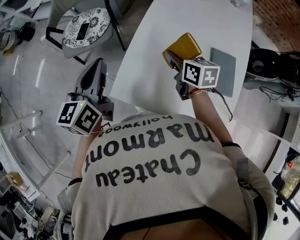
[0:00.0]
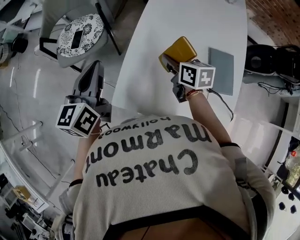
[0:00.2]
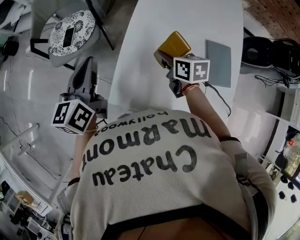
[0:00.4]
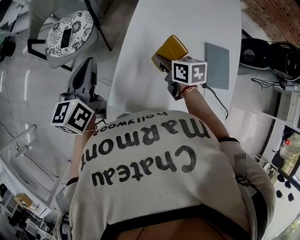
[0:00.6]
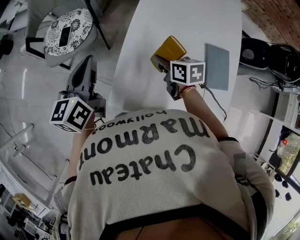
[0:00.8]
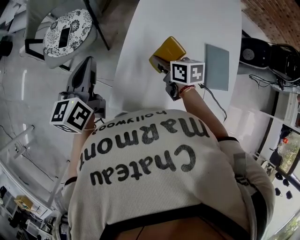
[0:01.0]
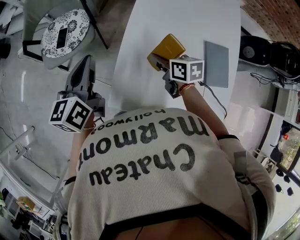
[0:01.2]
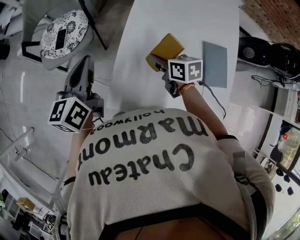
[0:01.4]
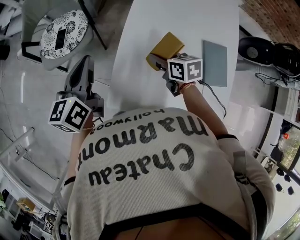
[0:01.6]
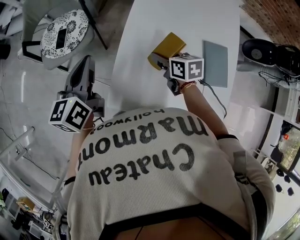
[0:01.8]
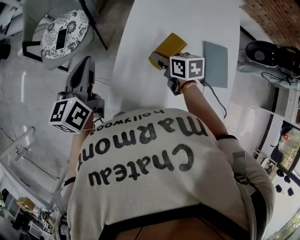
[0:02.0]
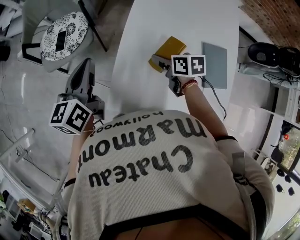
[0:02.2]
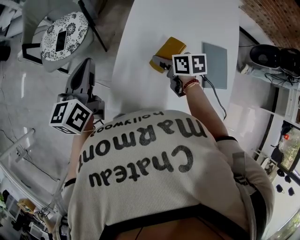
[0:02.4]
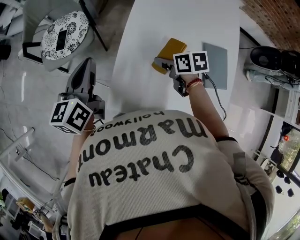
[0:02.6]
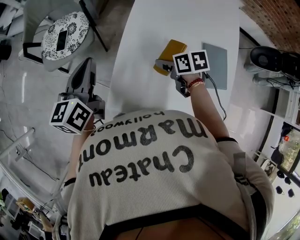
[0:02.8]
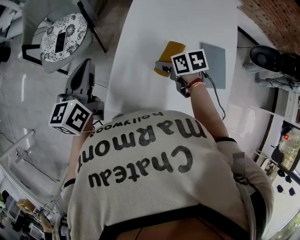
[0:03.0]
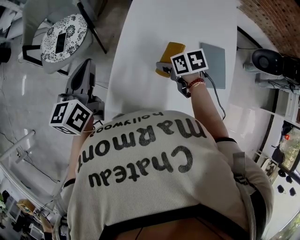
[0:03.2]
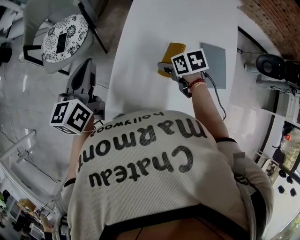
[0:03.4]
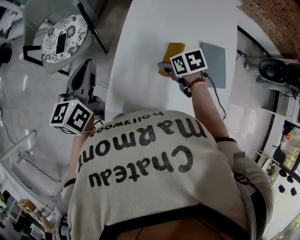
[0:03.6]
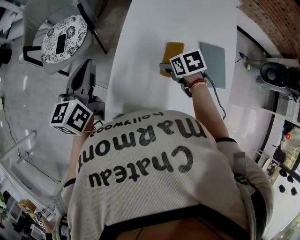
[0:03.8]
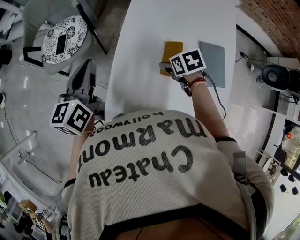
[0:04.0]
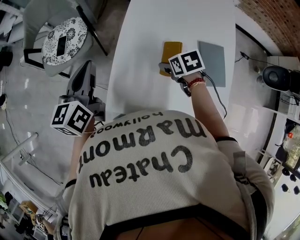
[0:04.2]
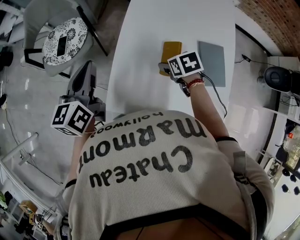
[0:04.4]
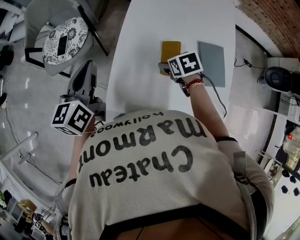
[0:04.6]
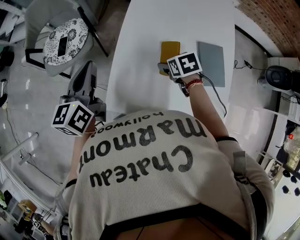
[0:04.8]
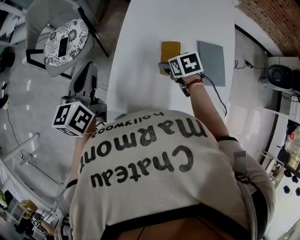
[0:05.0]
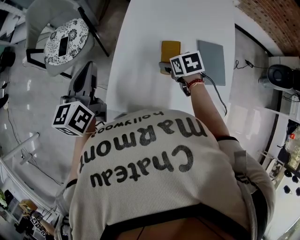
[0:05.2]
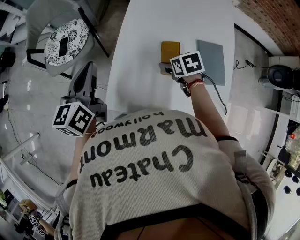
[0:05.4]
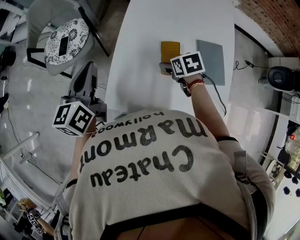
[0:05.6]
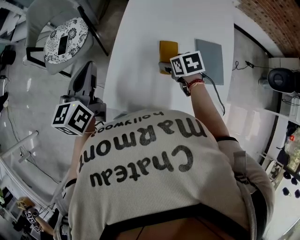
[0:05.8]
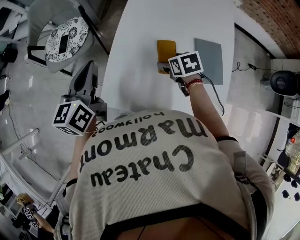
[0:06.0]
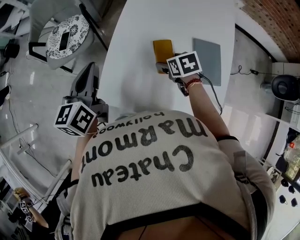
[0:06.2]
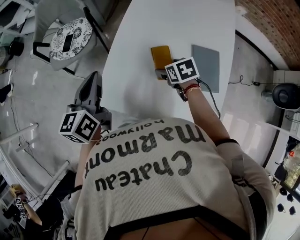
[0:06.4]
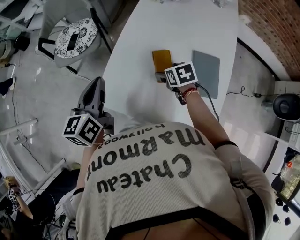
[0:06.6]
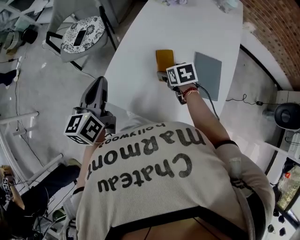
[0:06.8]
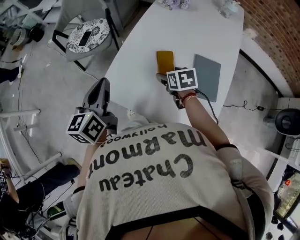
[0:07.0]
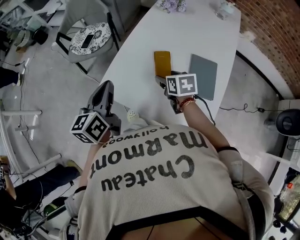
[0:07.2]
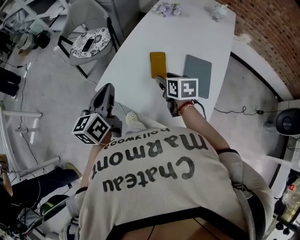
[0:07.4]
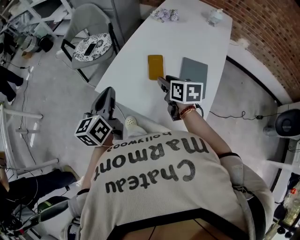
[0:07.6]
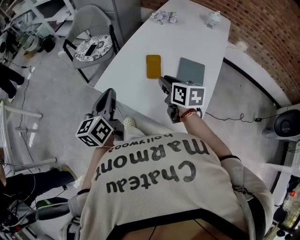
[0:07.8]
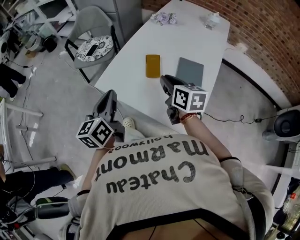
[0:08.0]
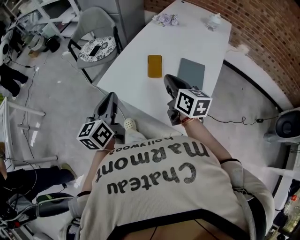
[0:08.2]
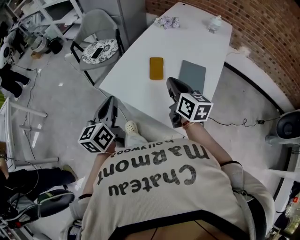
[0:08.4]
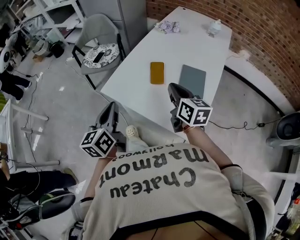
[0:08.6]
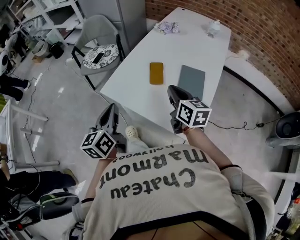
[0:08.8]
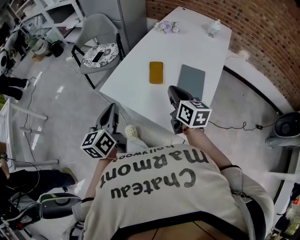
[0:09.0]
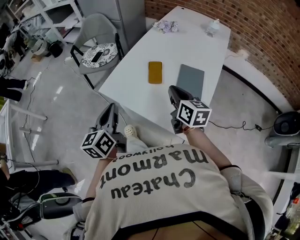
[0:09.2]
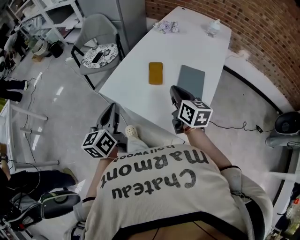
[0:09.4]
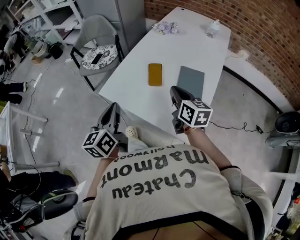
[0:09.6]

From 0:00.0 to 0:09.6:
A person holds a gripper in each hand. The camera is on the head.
From 0:00.0 to 0:01.6: The right gripper moves downward, roughly 5 cm, while the left gripper travels forward and downward by about 10 cm.
From 0:01.6 to 0:03.2: The right gripper shifts by about 5 cm, and swivels some 20 degrees.
From 0:03.2 to 0:04.8: The grippers make only small movements.
From 0:04.8 to 0:06.4: The left gripper shifts about 5 cm backward.
From 0:06.4 to 0:08.0: The right gripper heads upward and backward, covering about 25 cm, angles its fingers upward, by some 40 degrees, and closes its fingers. Meanwhile the left gripper shifts some 25 cm backward.
From 0:08.0 to 0:09.6: The grippers make only small movements.

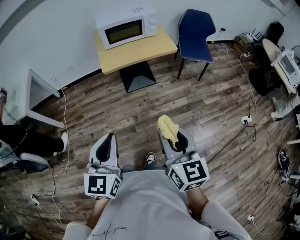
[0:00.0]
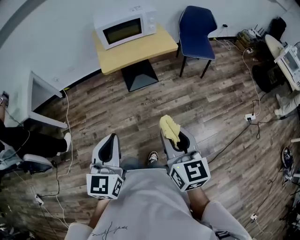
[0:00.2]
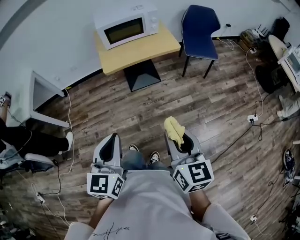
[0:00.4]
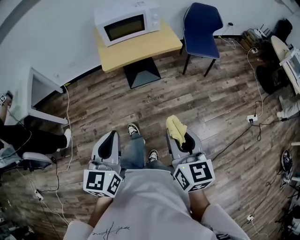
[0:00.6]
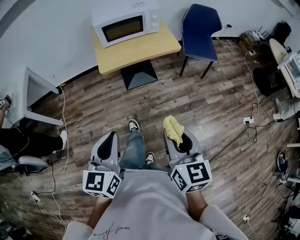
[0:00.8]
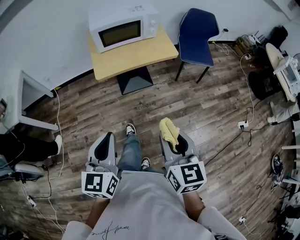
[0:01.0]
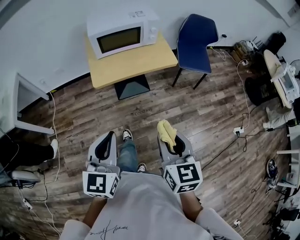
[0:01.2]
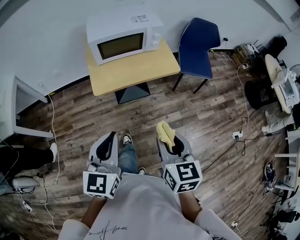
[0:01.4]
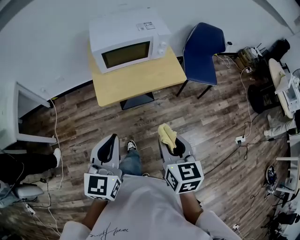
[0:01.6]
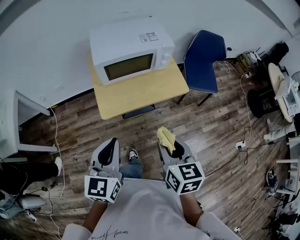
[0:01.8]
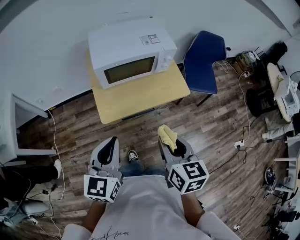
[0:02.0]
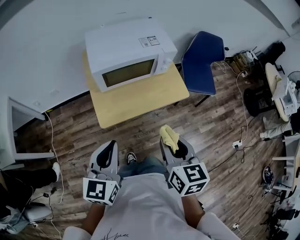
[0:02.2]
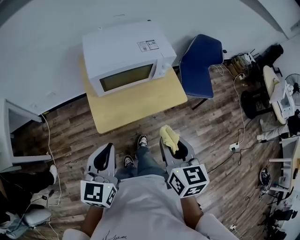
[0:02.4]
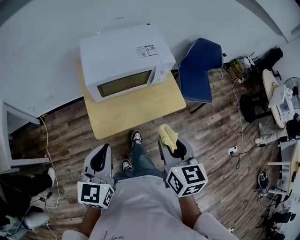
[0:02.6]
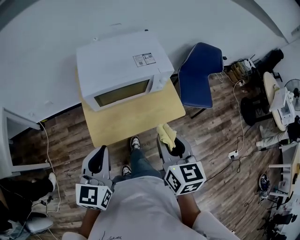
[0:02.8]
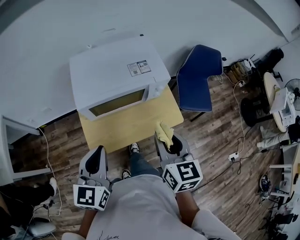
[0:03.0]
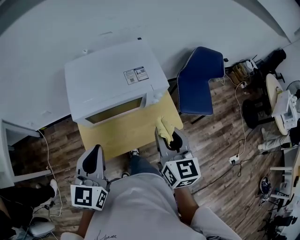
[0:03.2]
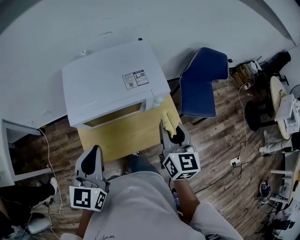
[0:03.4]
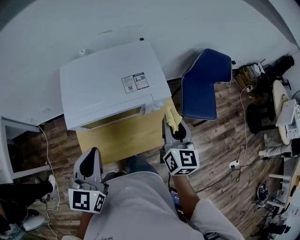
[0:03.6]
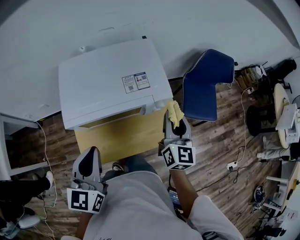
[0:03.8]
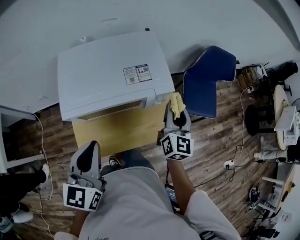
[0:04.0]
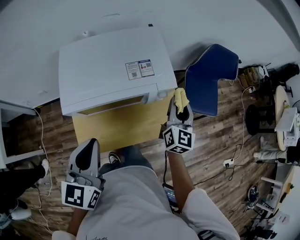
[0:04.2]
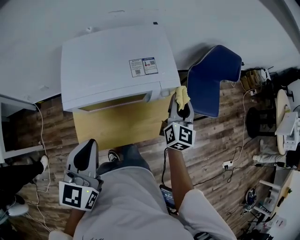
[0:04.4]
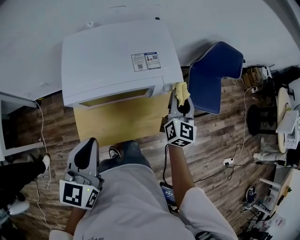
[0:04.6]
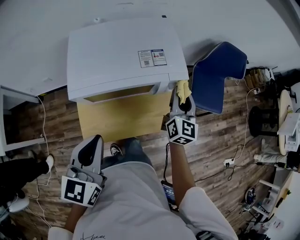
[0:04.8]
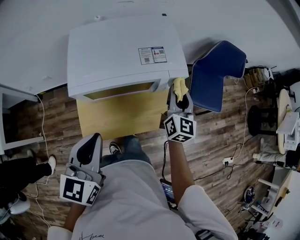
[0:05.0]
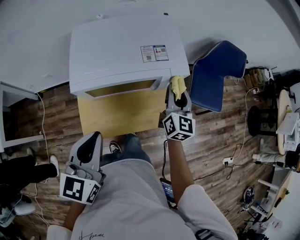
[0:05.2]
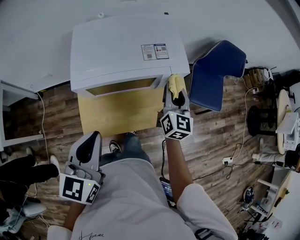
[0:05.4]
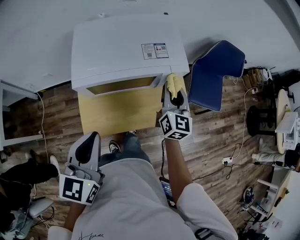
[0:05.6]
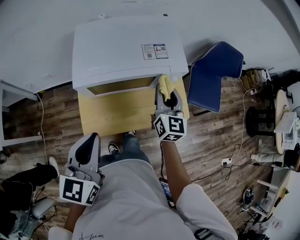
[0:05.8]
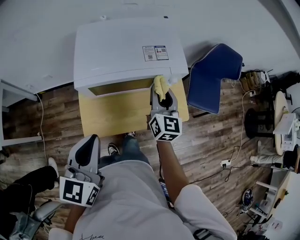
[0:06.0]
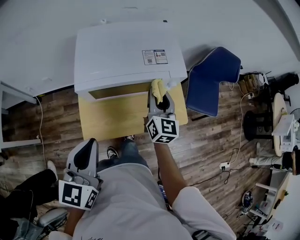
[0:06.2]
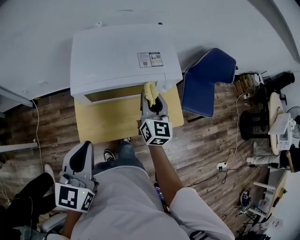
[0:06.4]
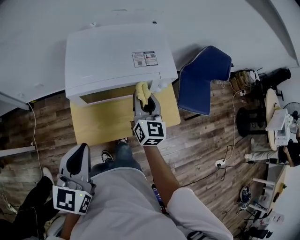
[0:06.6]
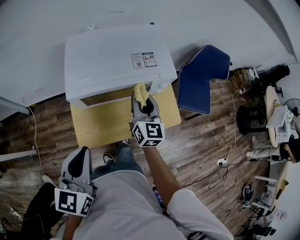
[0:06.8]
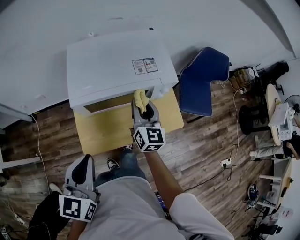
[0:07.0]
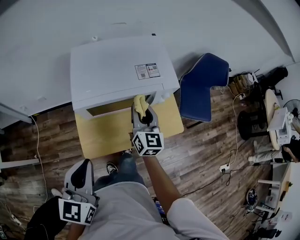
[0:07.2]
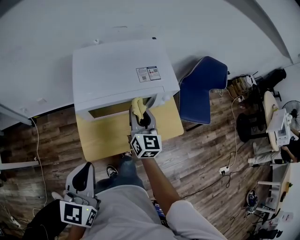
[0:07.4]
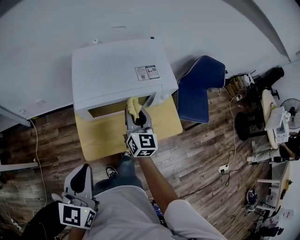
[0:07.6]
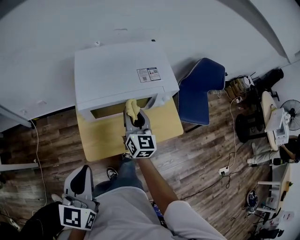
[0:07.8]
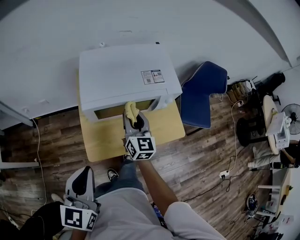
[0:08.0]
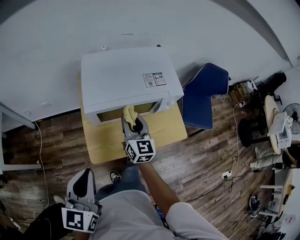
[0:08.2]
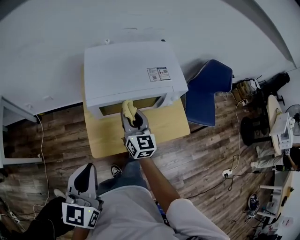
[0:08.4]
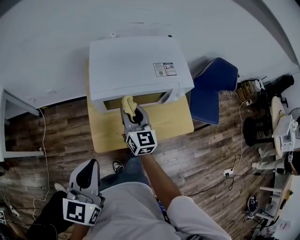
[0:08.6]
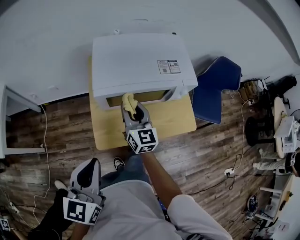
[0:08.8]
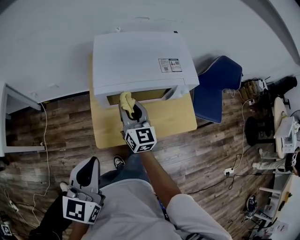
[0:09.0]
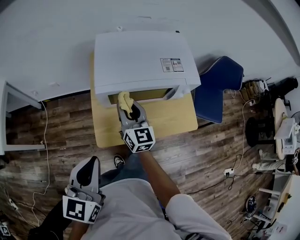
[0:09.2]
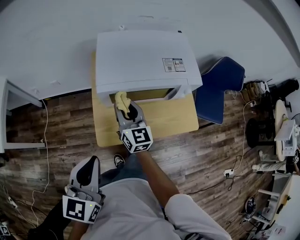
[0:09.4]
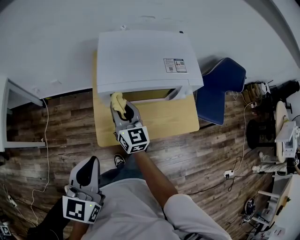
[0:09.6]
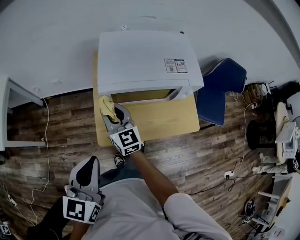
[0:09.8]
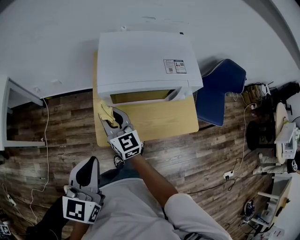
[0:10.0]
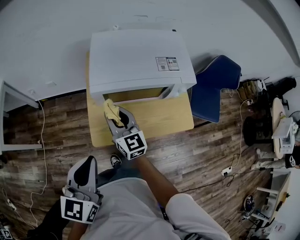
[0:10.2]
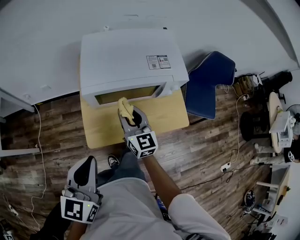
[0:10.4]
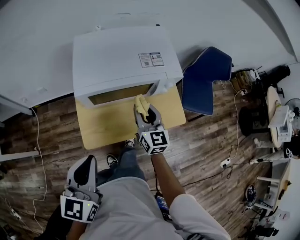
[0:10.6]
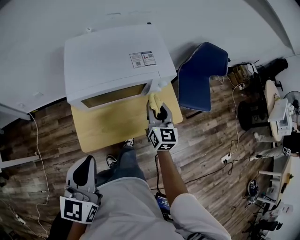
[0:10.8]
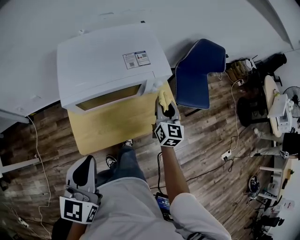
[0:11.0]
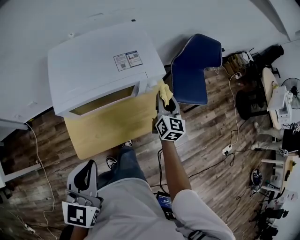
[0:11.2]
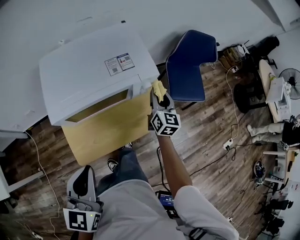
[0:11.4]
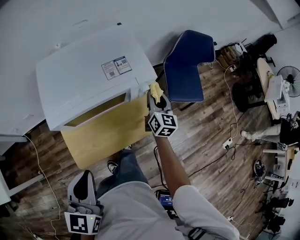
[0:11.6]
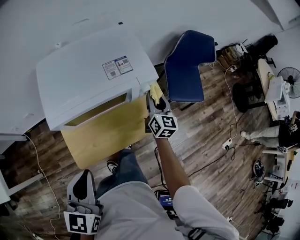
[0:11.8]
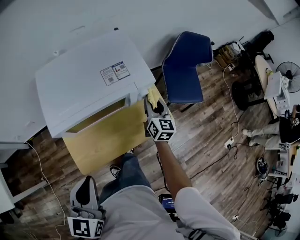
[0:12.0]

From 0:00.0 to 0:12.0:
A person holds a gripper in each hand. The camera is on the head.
From 0:00.0 to 0:01.6: Both grippers travel together forward, some 30 cm.
From 0:01.6 to 0:03.0: Both grippers travel together forward, roughly 25 cm.
From 0:03.0 to 0:04.4: The left gripper heads forward, covering roughly 10 cm. Meanwhile the right gripper heads forward, downward and to the right, covering some 25 cm, and rotates roughly 20 degrees.
From 0:04.4 to 0:06.0: The right gripper goes about 15 cm to the left and backward; the left gripper moves backward, roughly 5 cm.
From 0:06.0 to 0:07.6: The left gripper moves to the left, some 5 cm; the right gripper travels to the left by about 10 cm.
From 0:07.6 to 0:09.0: The right gripper shifts roughly 10 cm to the left.
From 0:09.0 to 0:10.4: The right gripper moves approximately 10 cm to the left and comes back.
From 0:10.4 to 0:12.0: The right gripper shifts some 30 cm to the right and forward, and rotates roughly 30 degrees. The left gripper heads forward, covering roughly 5 cm.

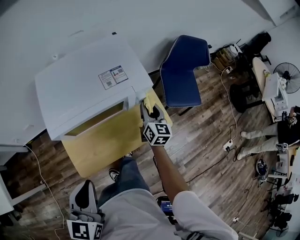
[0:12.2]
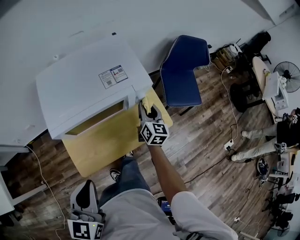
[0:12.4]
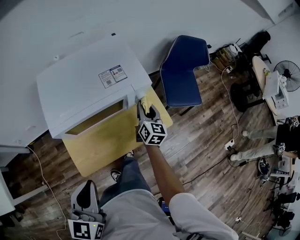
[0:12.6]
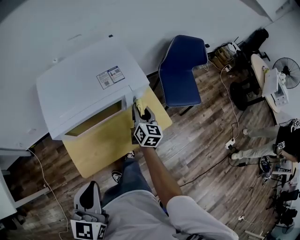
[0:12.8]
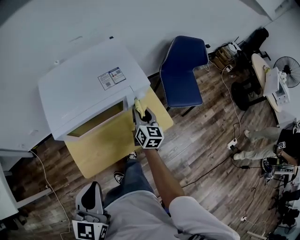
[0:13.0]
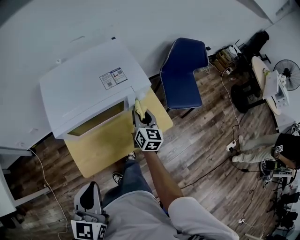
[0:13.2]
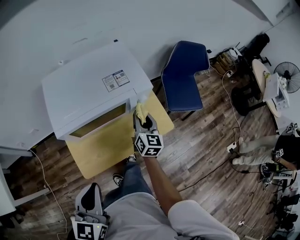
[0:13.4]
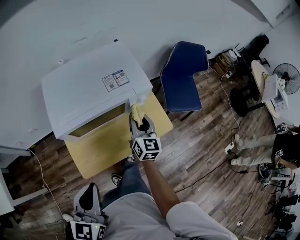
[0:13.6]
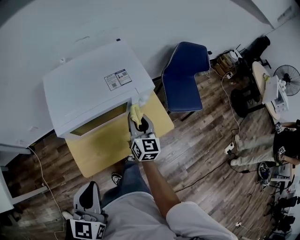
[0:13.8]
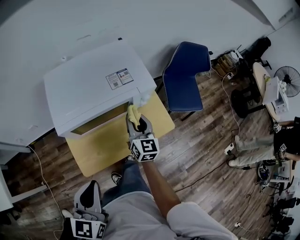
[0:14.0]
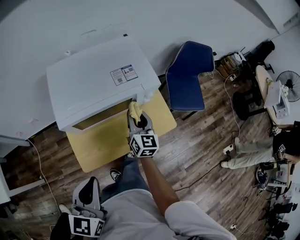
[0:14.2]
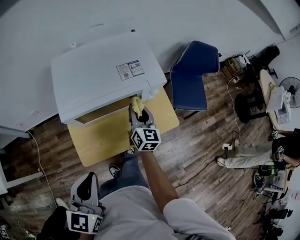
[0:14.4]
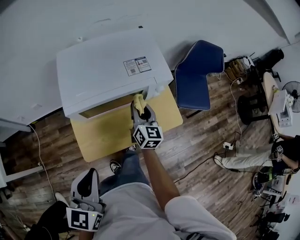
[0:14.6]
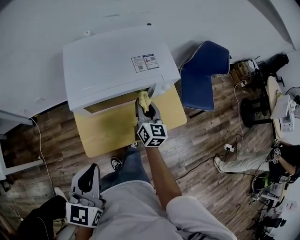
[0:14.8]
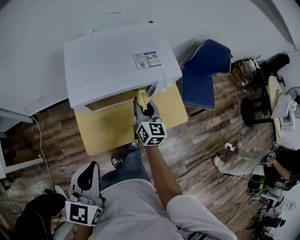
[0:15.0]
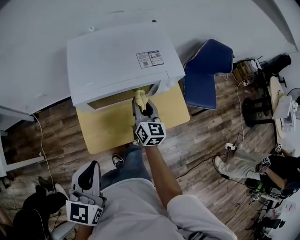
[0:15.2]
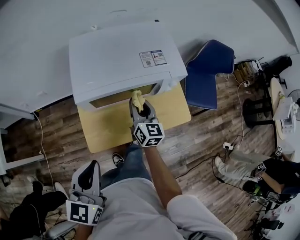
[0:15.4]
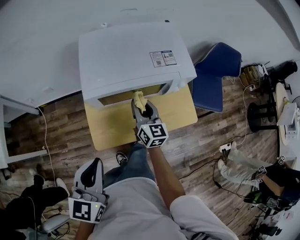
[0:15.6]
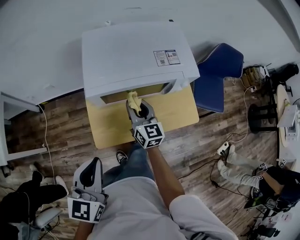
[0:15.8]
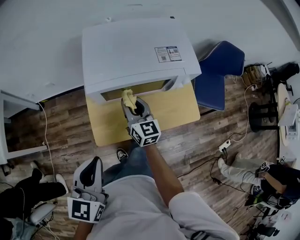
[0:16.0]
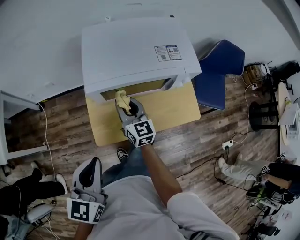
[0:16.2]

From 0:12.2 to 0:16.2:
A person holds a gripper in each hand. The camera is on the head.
From 0:12.2 to 0:13.6: The right gripper goes approximately 10 cm to the left and backward.
From 0:13.6 to 0:14.8: The right gripper shifts some 5 cm to the left.
From 0:14.8 to 0:16.2: The right gripper goes approximately 15 cm to the left, and swivels approximately 20 degrees.
